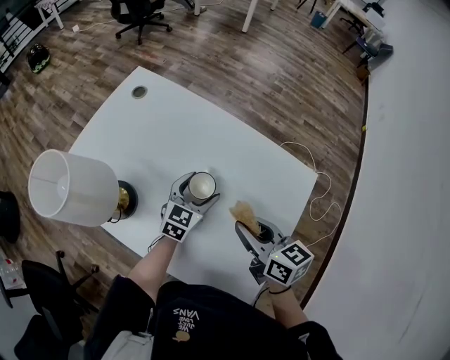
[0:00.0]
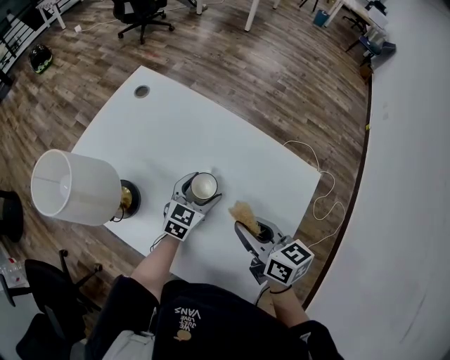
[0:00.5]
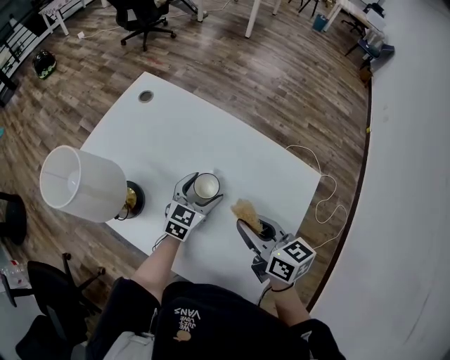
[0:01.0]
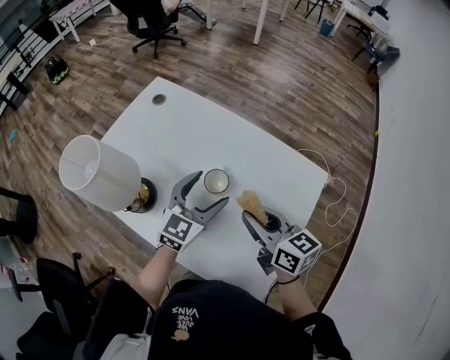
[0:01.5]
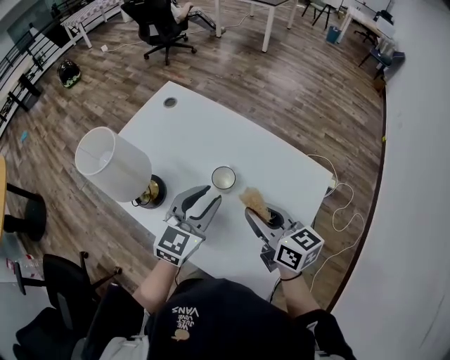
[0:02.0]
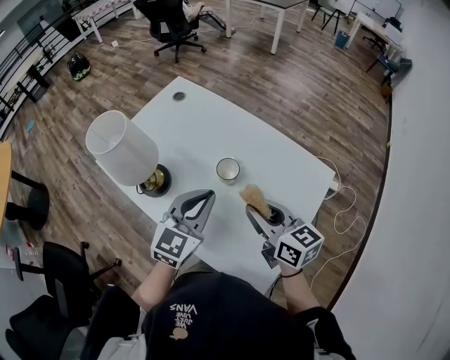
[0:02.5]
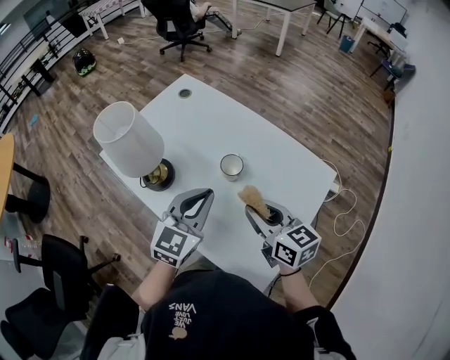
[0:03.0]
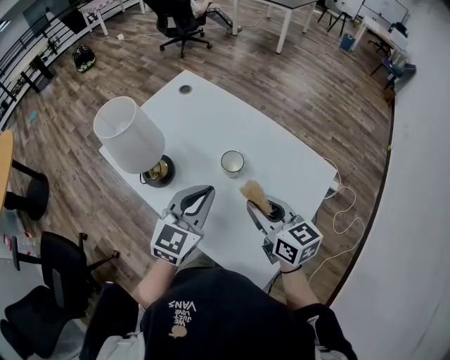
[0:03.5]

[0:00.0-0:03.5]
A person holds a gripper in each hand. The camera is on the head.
0:00.0 to 0:02.0: The right gripper is displaced upward by approximately 5 cm; the left gripper goes approximately 20 cm upward and backward, and closes up.
0:02.0 to 0:03.5: The left gripper moves backward, approximately 5 cm.

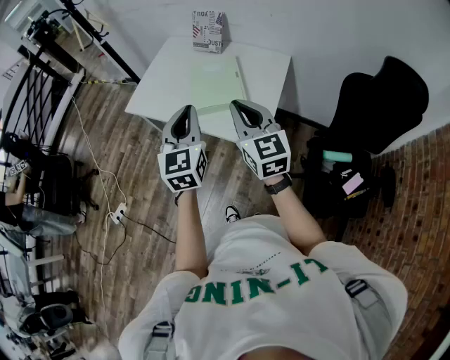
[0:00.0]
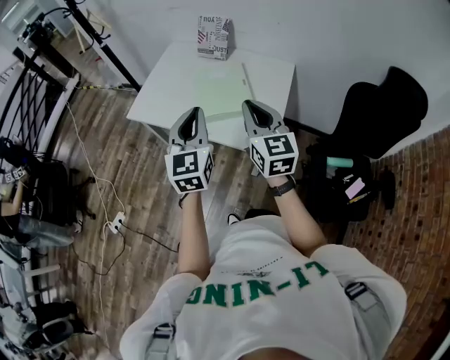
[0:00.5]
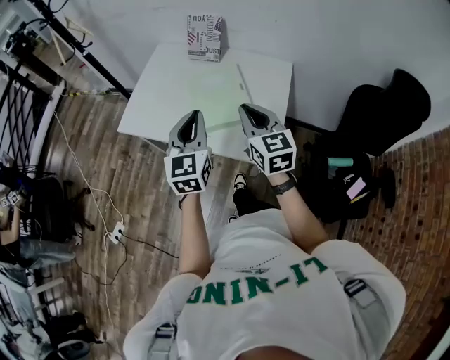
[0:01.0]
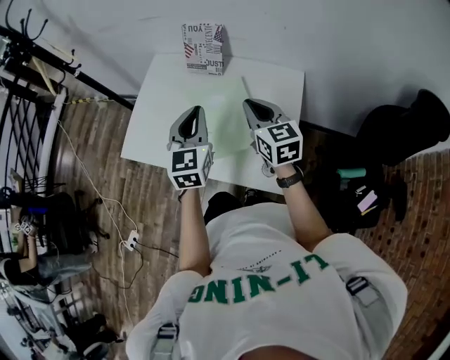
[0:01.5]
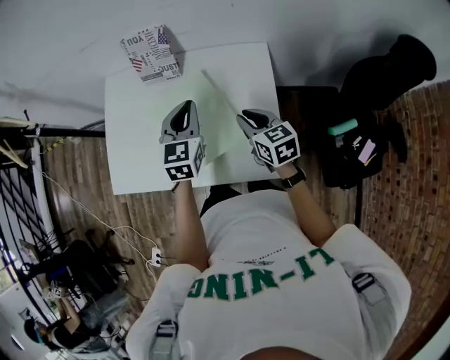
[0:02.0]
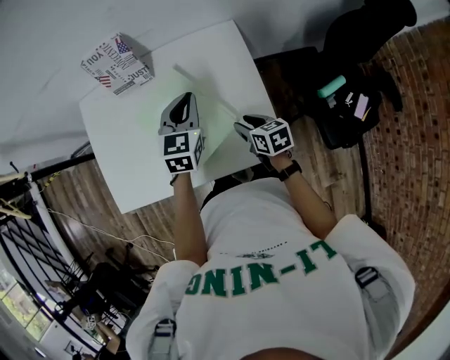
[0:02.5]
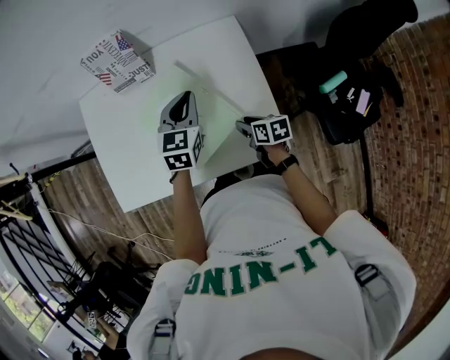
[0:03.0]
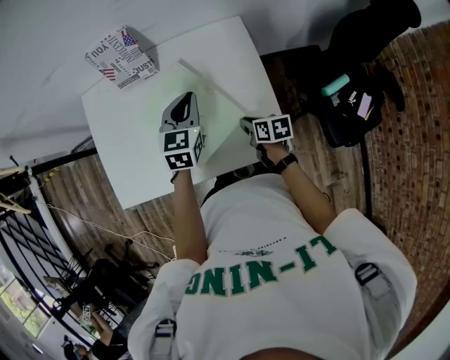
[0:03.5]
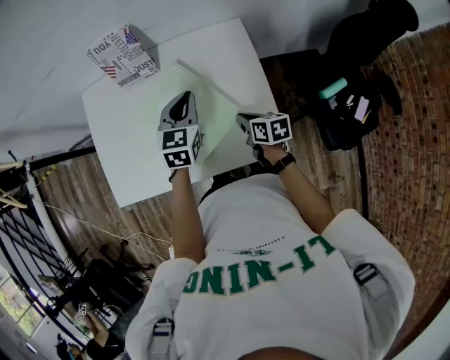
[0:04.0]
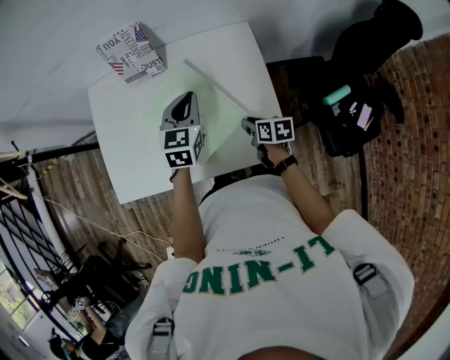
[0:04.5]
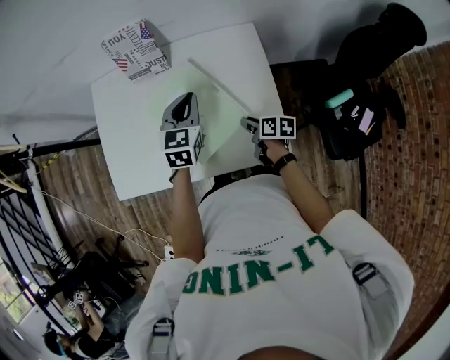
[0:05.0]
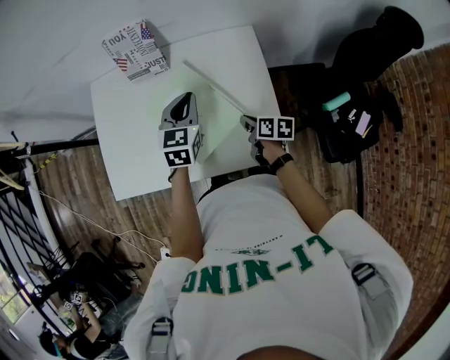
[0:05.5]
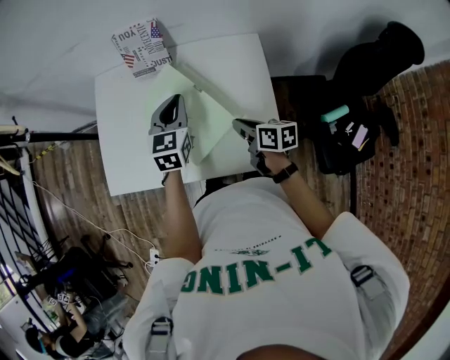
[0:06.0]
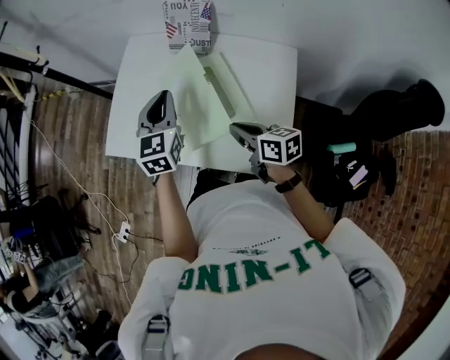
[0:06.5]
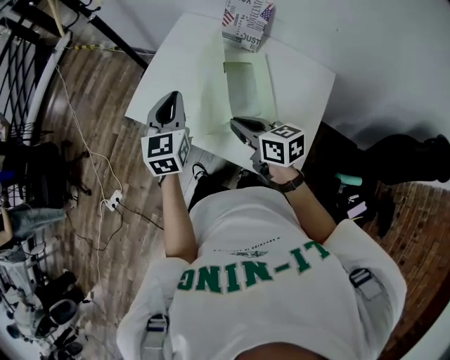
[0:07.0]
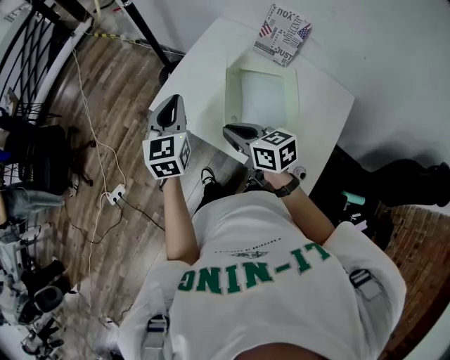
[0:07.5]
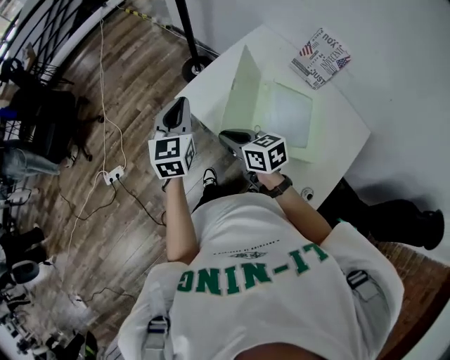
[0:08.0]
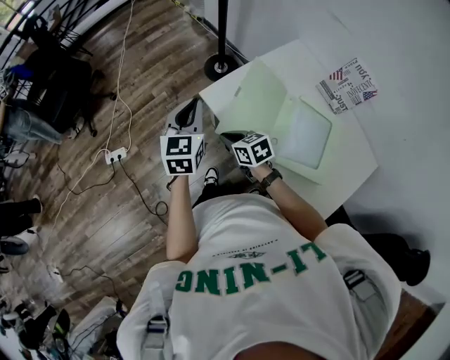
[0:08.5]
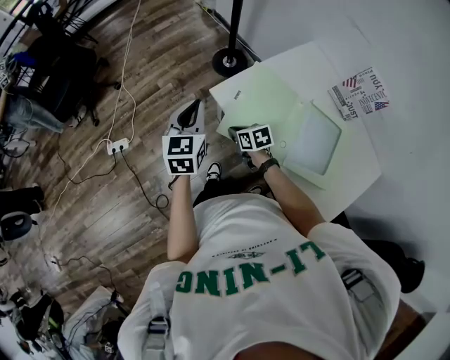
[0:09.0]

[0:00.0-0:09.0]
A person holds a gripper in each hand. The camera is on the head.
0:00.0 to 0:02.0: The left gripper shifts some 35 cm forward, and rotates roughly 30 degrees; the right gripper goes about 35 cm forward and downward, and turns by approximately 40 degrees.
0:02.0 to 0:04.5: The right gripper goes some 15 cm downward, and rotates roughly 40 degrees.
0:04.5 to 0:07.0: The right gripper changes place by roughly 30 cm, and turns by roughly 50 degrees. The left gripper changes place by approximately 30 cm, and rotates about 40 degrees.
0:07.0 to 0:09.0: The right gripper ends up approximately 40 cm from where it was, and turns by about 40 degrees. The left gripper ends up roughly 35 cm from where it was, and swivels about 30 degrees.

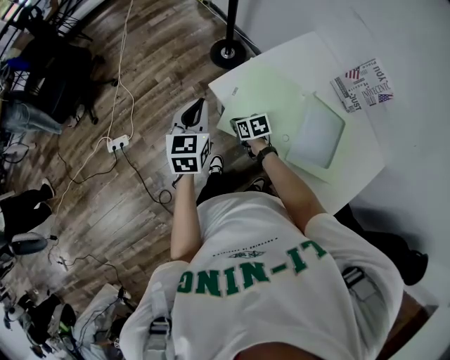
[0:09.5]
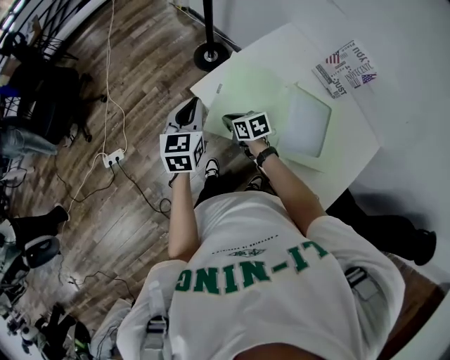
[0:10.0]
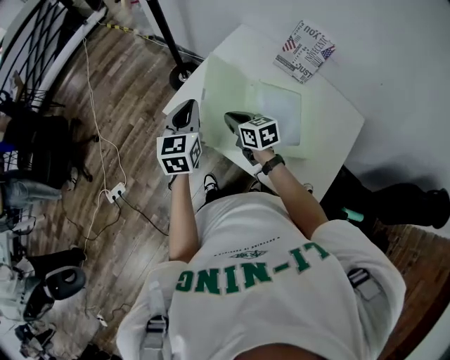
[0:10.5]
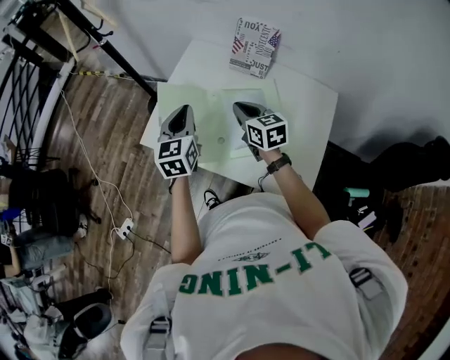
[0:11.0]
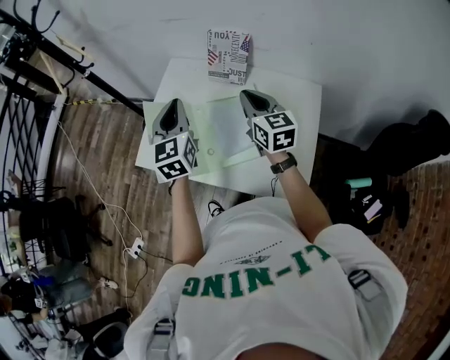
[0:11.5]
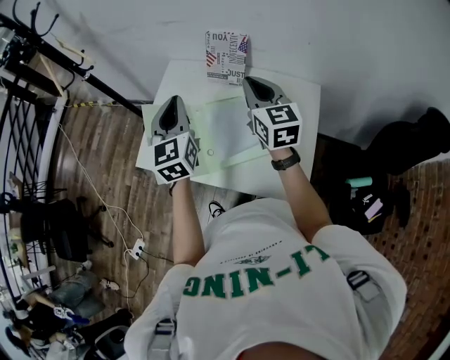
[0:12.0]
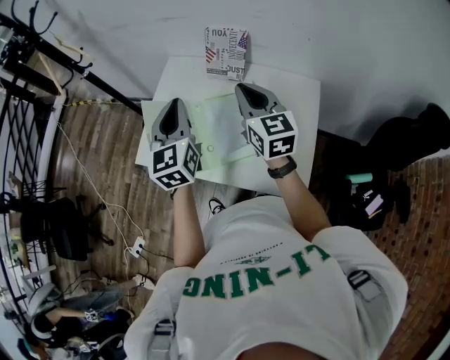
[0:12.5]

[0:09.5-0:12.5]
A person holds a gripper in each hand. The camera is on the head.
0:09.5 to 0:11.0: The left gripper ends up about 30 cm from where it was, and swivels approximately 30 degrees. Meanwhile the right gripper ends up approximately 40 cm from where it was, and rotates about 50 degrees.
0:11.0 to 0:12.5: The two grippers go roughly 15 cm upward and to the right. The right gripper swivels some 20 degrees.

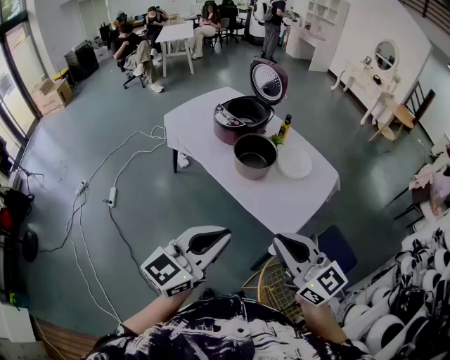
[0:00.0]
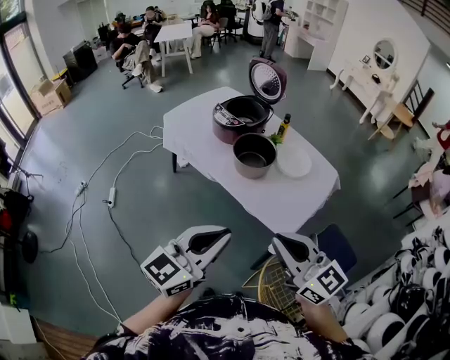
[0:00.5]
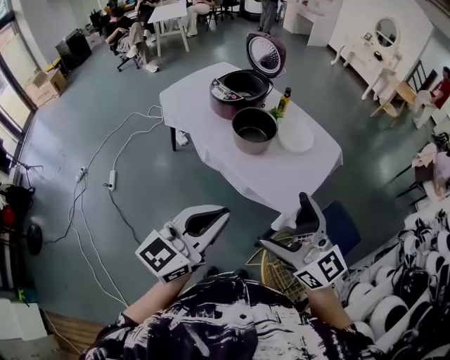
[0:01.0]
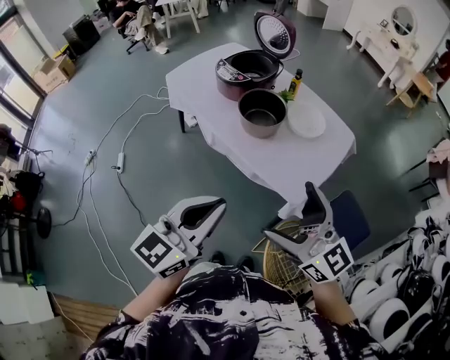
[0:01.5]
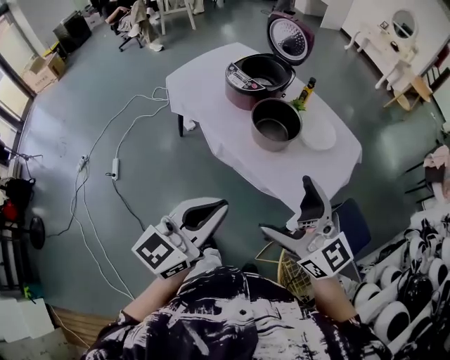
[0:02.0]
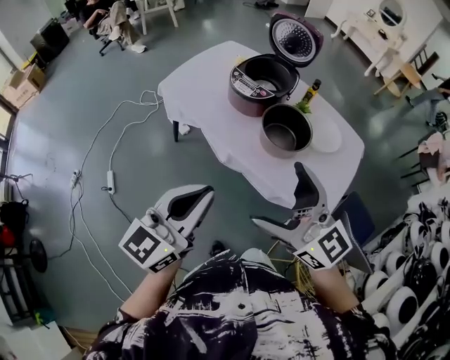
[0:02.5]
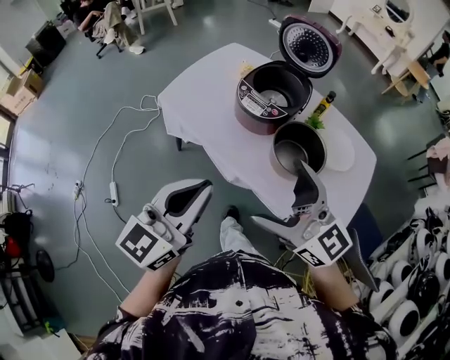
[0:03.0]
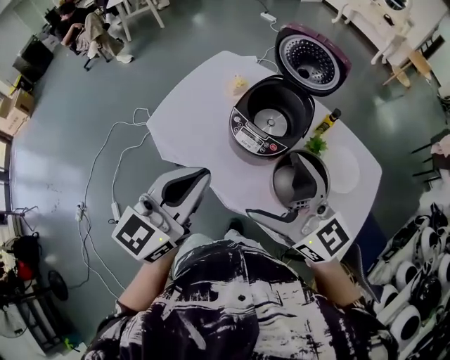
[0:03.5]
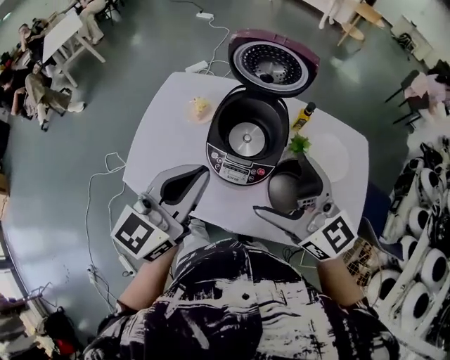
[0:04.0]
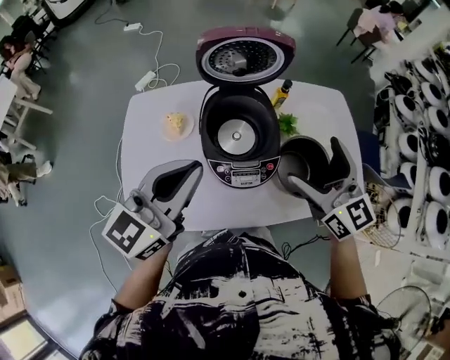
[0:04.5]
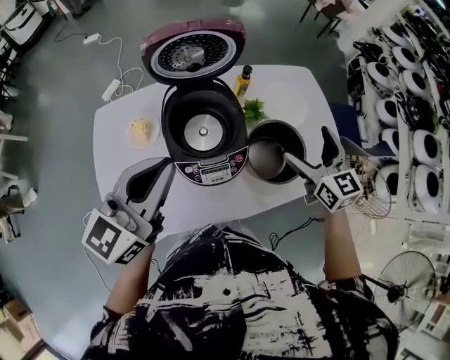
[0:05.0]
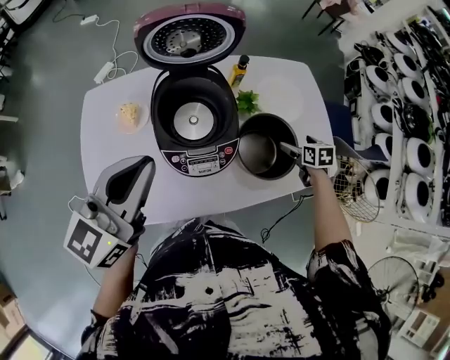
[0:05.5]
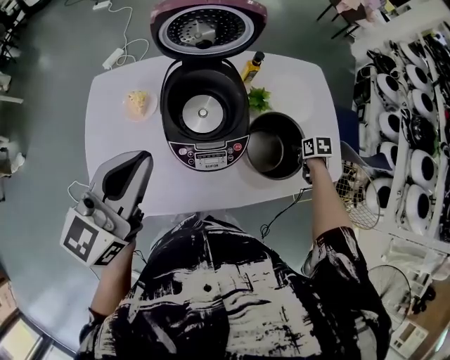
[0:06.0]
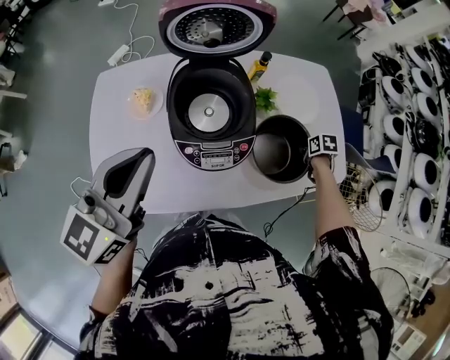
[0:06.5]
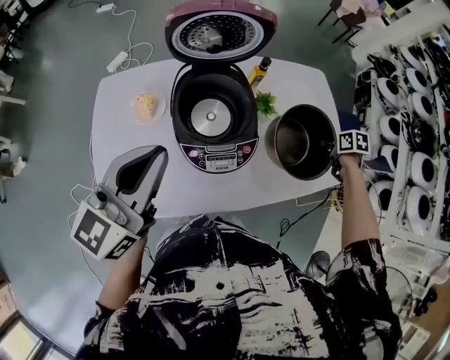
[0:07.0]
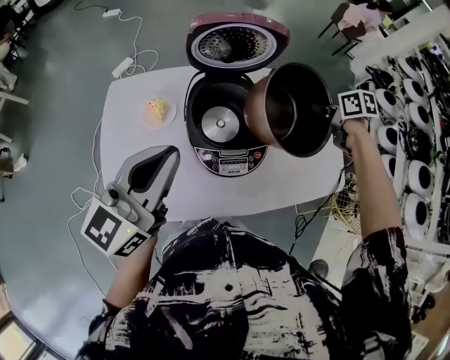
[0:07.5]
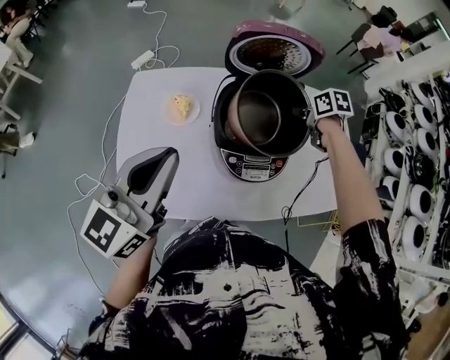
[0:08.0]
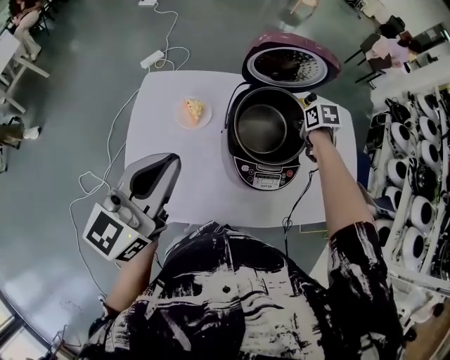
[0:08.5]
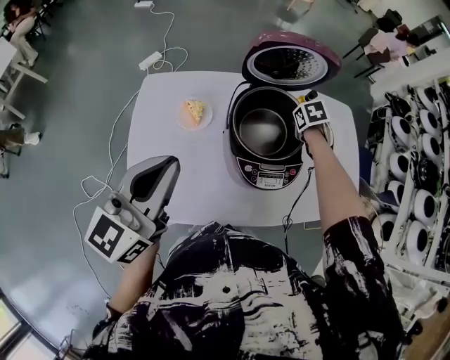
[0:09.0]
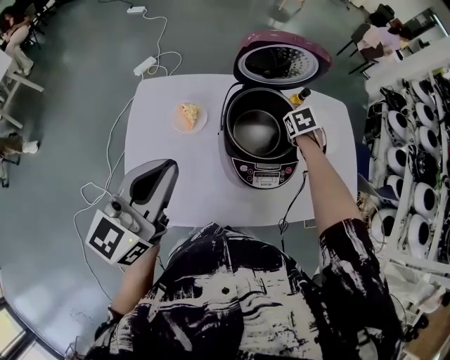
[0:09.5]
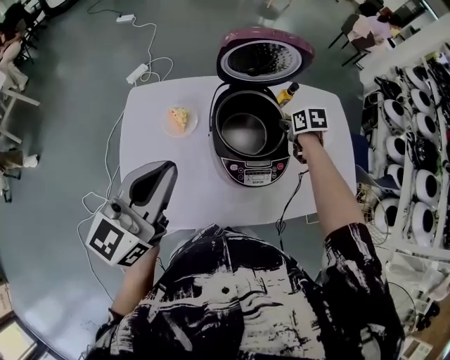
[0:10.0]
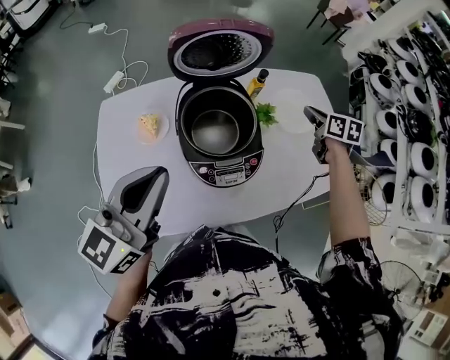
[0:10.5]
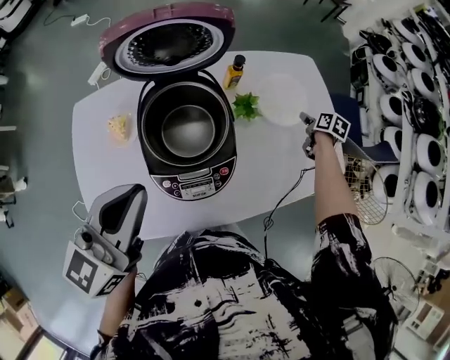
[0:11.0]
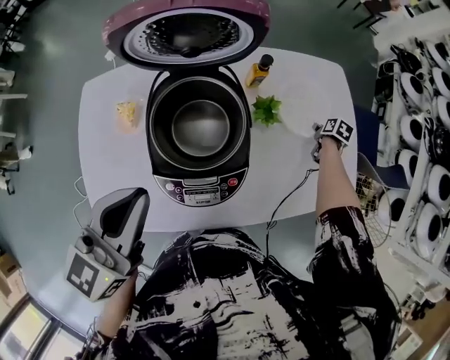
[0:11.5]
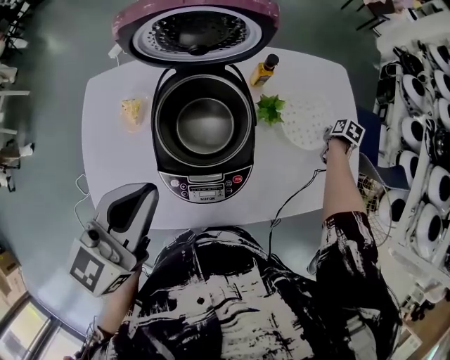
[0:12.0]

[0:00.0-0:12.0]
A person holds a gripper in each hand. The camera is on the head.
0:00.0 to 0:02.0: The grippers both shift forward and to the left by about 15 cm. The right gripper opens.
0:02.0 to 0:04.0: The two grippers travel together, about 50 cm. The left gripper rotates approximately 30 degrees. The right gripper turns by roughly 30 degrees.
0:04.0 to 0:06.0: The left gripper ends up roughly 10 cm from where it was, while the right gripper is displaced downward by about 40 cm, angles its fingers downward, by roughly 70 degrees, and closes its fingers.
0:06.0 to 0:08.0: The right gripper moves about 35 cm. The left gripper changes place by roughly 10 cm.
0:08.0 to 0:10.0: The right gripper travels downward by approximately 5 cm.
0:10.0 to 0:12.0: The left gripper heads to the right, forward and downward, covering some 20 cm. The right gripper goes some 40 cm to the right and downward, and turns by some 40 degrees.
